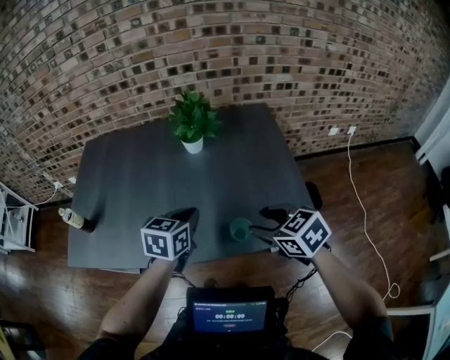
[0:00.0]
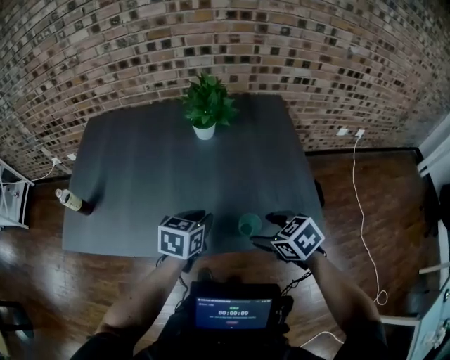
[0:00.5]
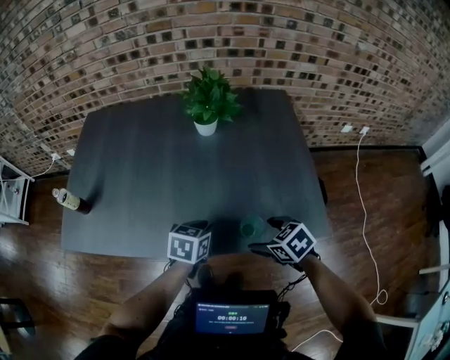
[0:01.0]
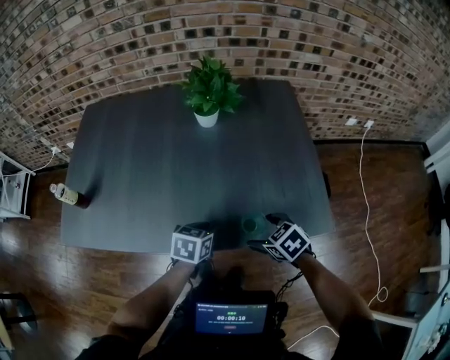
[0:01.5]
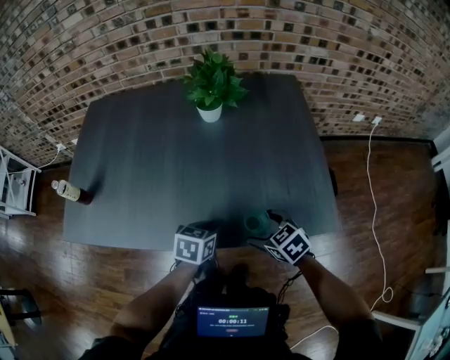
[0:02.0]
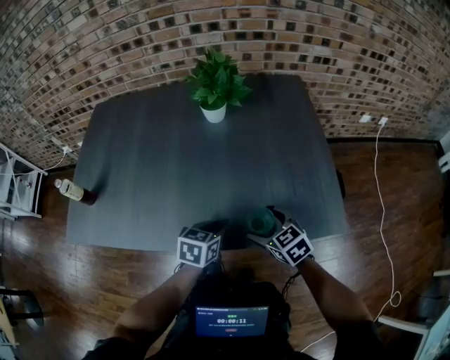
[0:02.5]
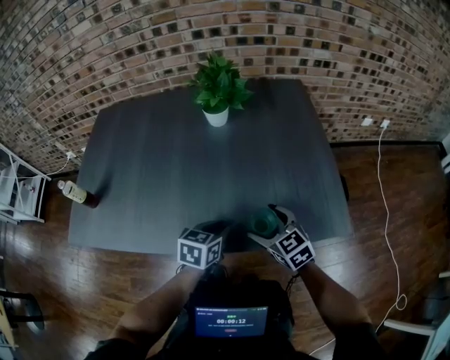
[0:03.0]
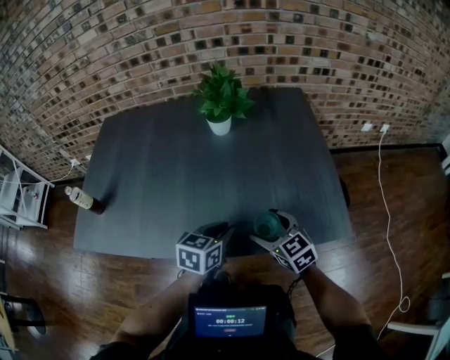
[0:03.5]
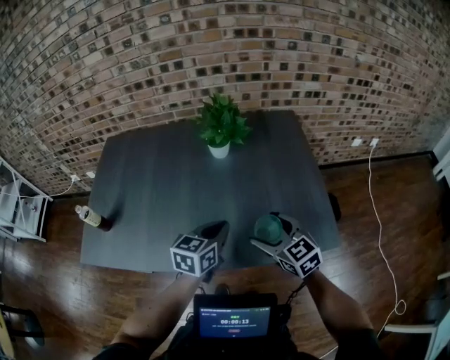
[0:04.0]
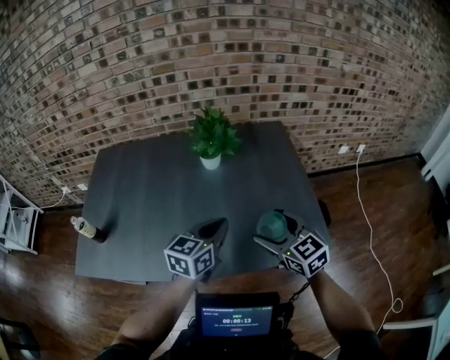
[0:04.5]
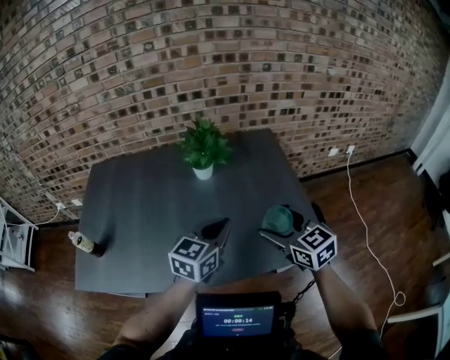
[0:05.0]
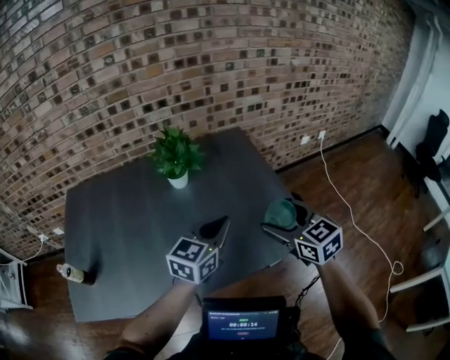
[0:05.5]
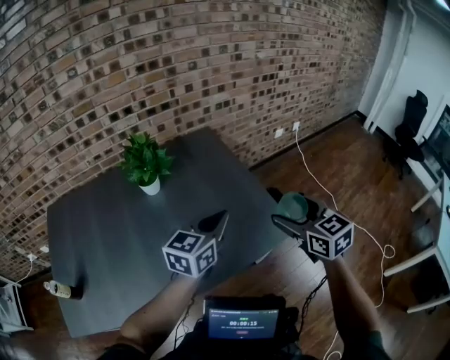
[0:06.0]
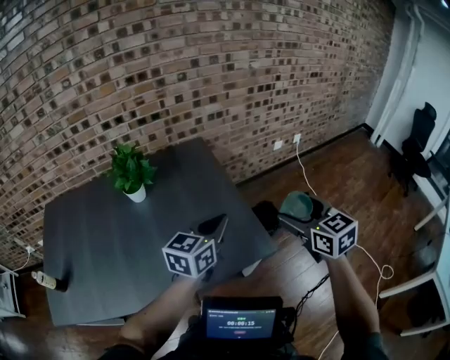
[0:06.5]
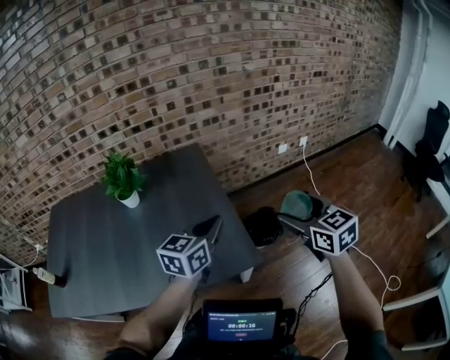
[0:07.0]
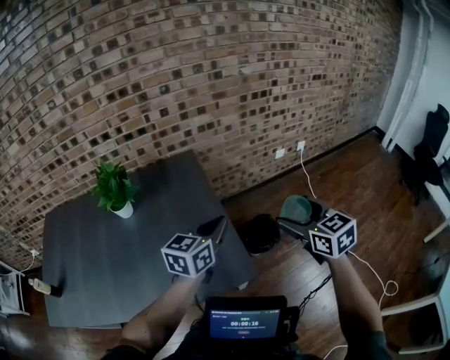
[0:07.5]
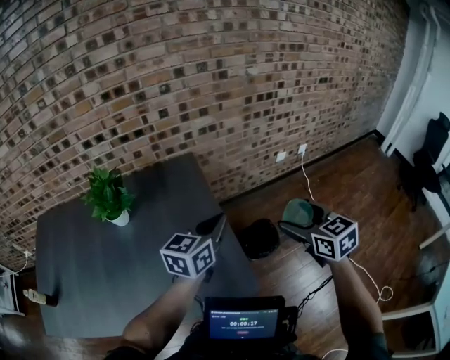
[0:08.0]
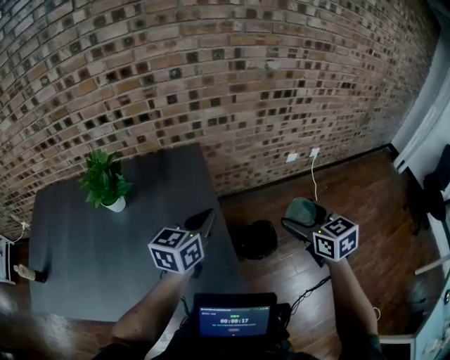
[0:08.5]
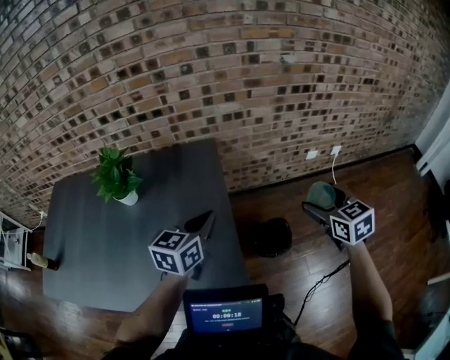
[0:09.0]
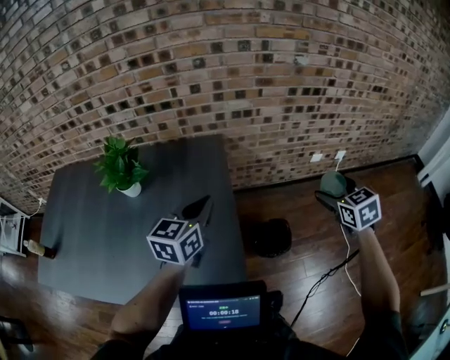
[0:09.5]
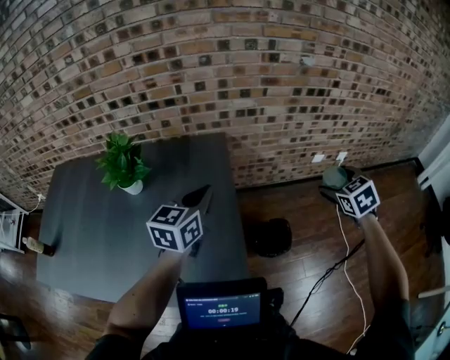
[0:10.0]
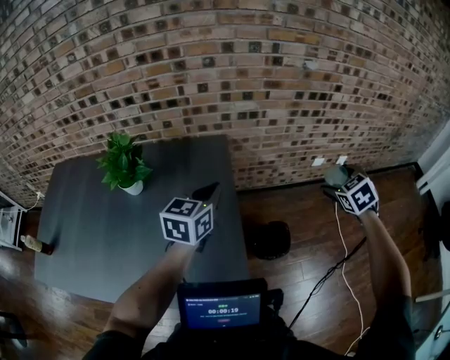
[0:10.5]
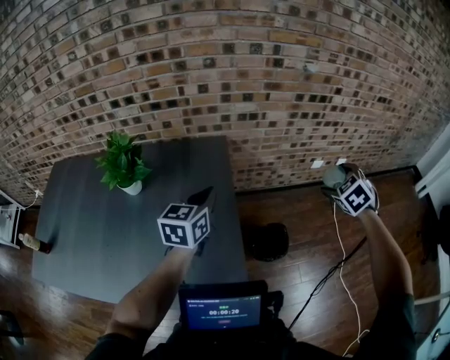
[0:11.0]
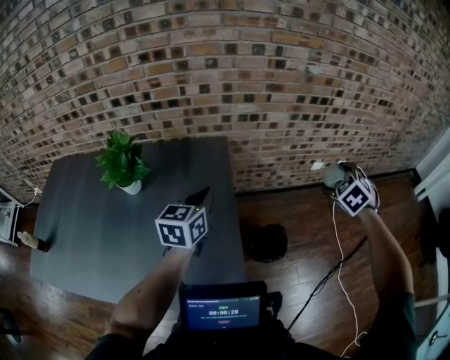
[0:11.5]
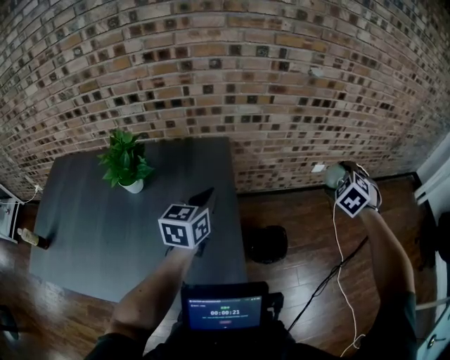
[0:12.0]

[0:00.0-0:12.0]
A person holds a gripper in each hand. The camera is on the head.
0:00.0 to 0:02.0: Both grippers travel together downward, some 20 cm. The right gripper opens.
0:02.0 to 0:04.0: The two grippers go some 15 cm upward. The left gripper rotates approximately 20 degrees; the right gripper swivels some 30 degrees.
0:04.0 to 0:06.0: The left gripper ends up about 20 cm from where it was, and rotates approximately 30 degrees. Meanwhile the right gripper moves roughly 25 cm, and rotates about 30 degrees.
0:06.0 to 0:08.0: The left gripper travels forward and to the right by about 25 cm; the right gripper moves to the right and forward, some 30 cm.
0:08.0 to 0:10.0: The right gripper travels forward and to the right by roughly 25 cm, and changes its angle by approximately 30 degrees. Meanwhile the left gripper shifts some 10 cm forward and to the left, and rotates roughly 20 degrees.
0:10.0 to 0:12.0: The right gripper swivels approximately 30 degrees.

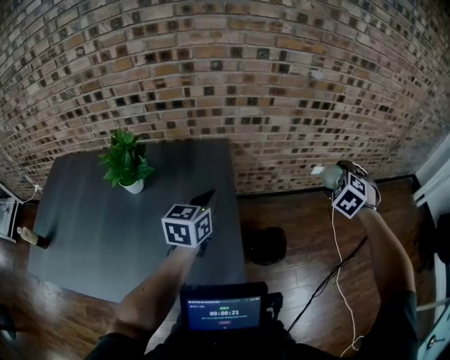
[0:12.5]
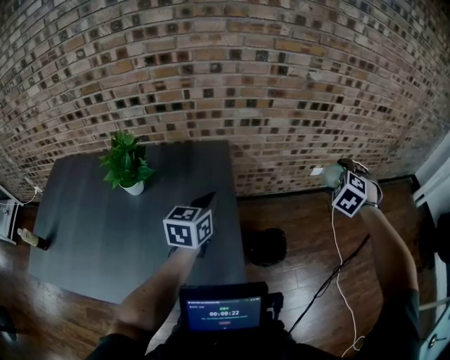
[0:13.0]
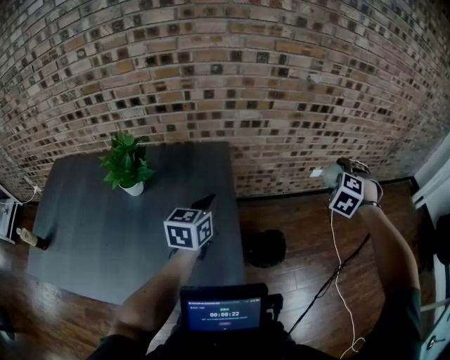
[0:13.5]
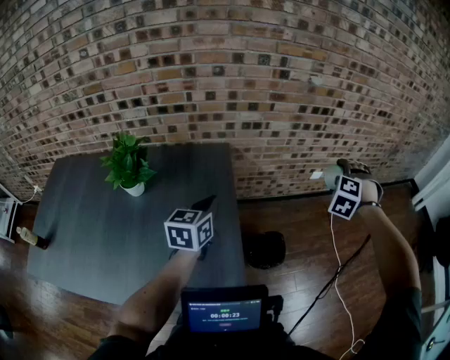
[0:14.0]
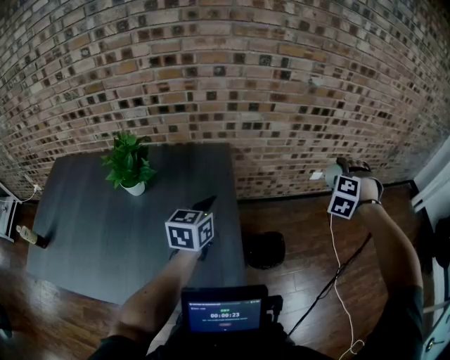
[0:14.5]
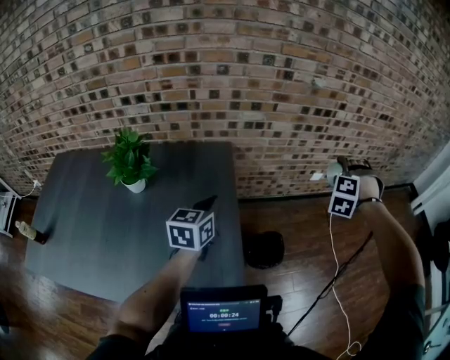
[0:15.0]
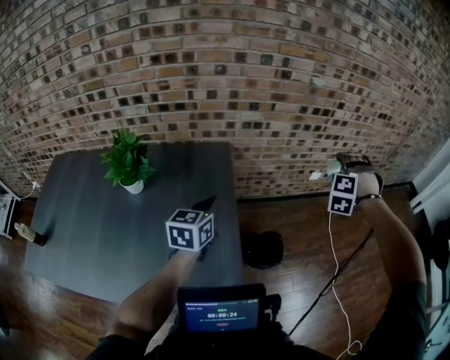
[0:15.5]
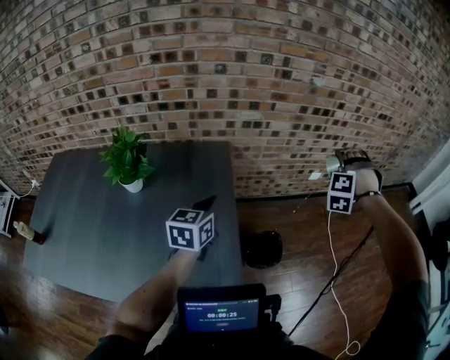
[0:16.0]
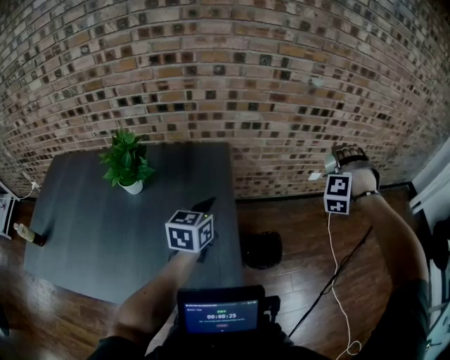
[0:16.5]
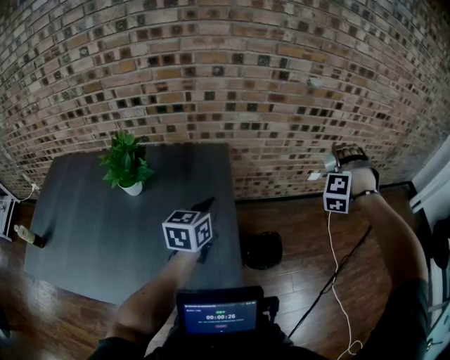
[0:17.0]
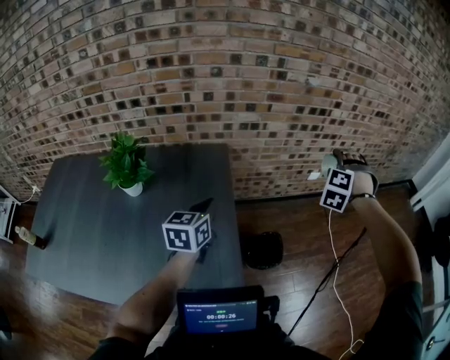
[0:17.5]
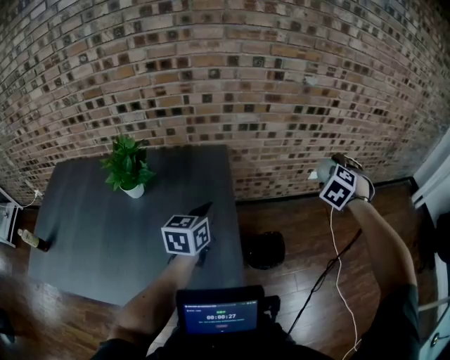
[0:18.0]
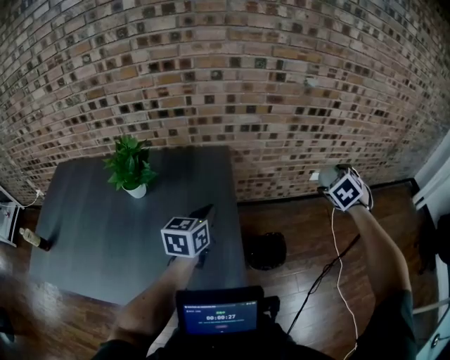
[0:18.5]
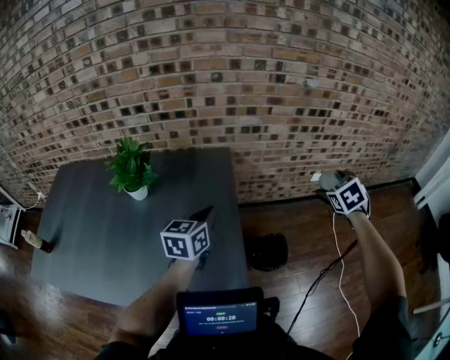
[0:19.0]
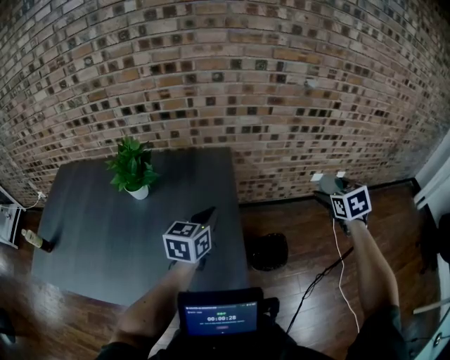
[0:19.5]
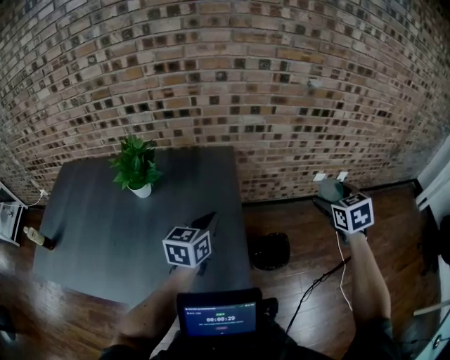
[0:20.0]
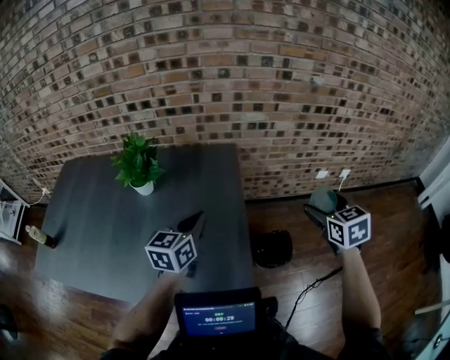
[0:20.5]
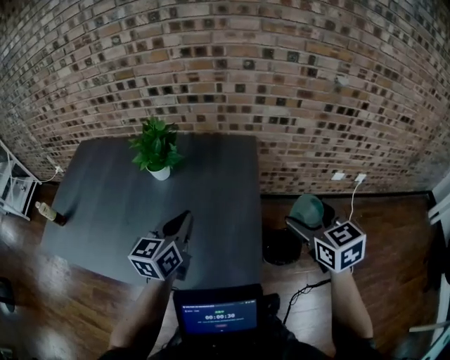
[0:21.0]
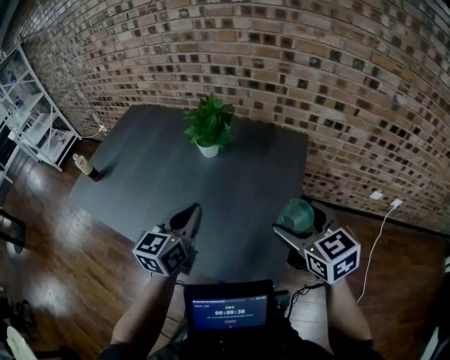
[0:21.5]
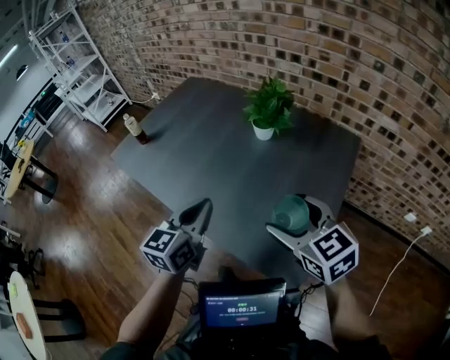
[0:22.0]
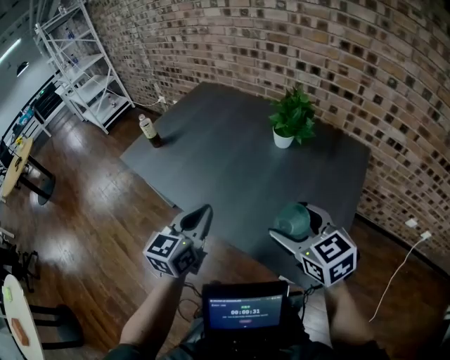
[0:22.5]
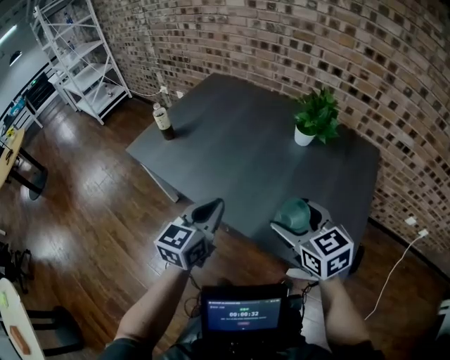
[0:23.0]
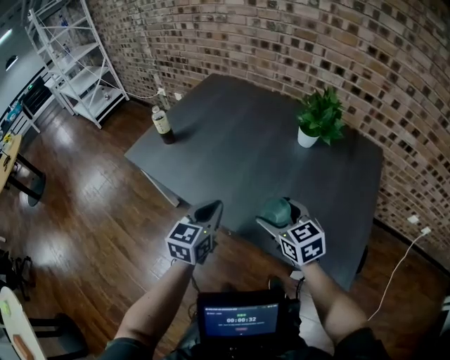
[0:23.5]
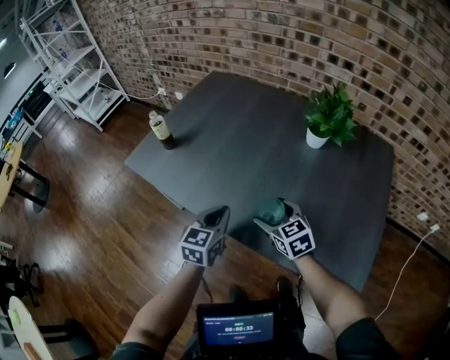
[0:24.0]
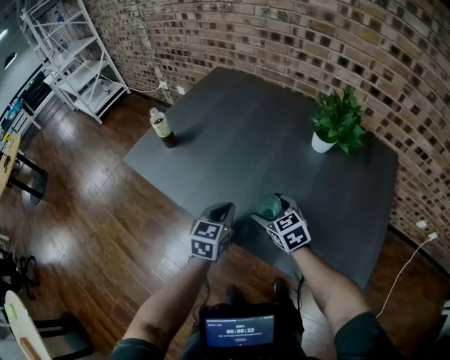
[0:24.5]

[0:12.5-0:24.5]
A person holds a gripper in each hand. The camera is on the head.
0:12.5 to 0:14.5: The right gripper rotates about 20 degrees.
0:14.5 to 0:16.5: The right gripper rotates approximately 20 degrees.
0:16.5 to 0:18.5: The right gripper ends up approximately 5 cm from where it was, and rotates around the line of its fingers by approximately 60 degrees, clockwise from behind.
0:18.5 to 0:20.5: The right gripper moves backward and to the left, approximately 10 cm, and changes its angle by about 40 degrees; the left gripper travels backward by roughly 5 cm.
0:20.5 to 0:22.5: The right gripper moves approximately 50 cm, and swivels roughly 60 degrees; the left gripper shifts by about 40 cm, and changes its angle by about 40 degrees.
0:22.5 to 0:24.5: Both grippers travel together downward, forward and to the left, some 30 cm.

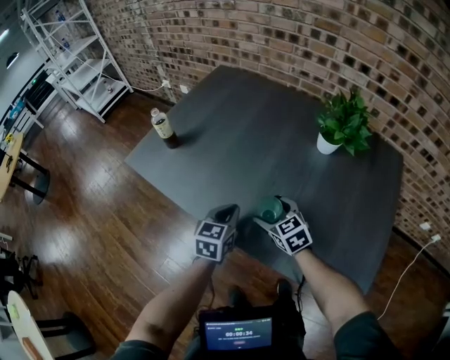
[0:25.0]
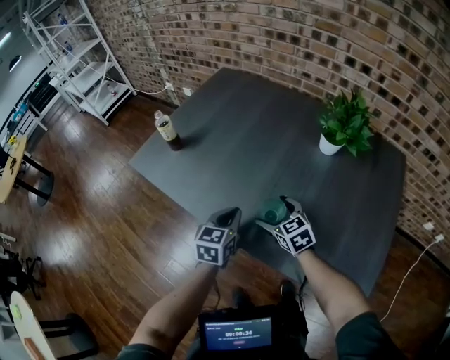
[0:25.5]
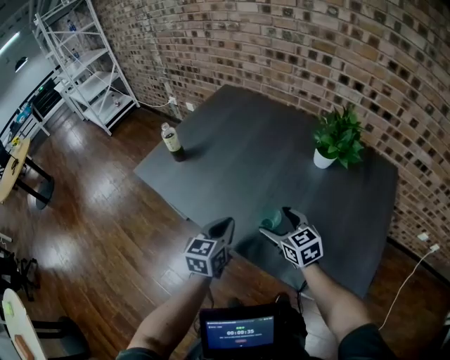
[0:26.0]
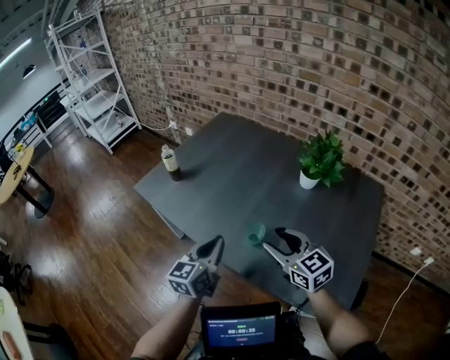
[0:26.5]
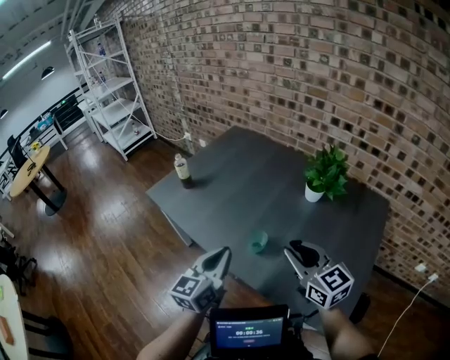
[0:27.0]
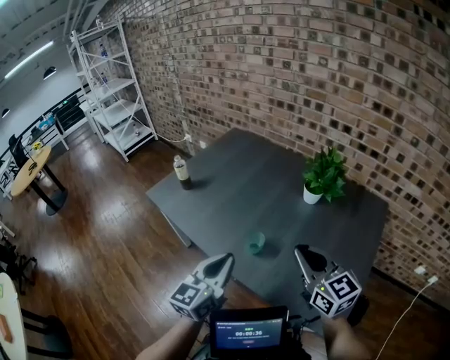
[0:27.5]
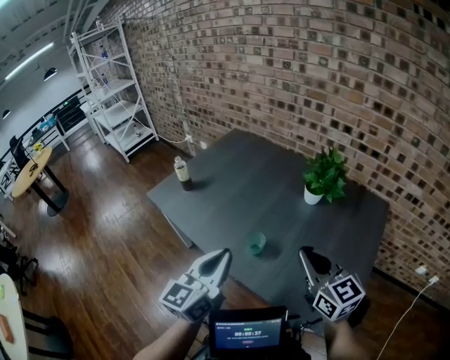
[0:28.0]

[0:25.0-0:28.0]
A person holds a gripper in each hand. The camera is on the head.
0:25.0 to 0:26.5: Both grippers move upward and backward, some 20 cm. The right gripper rotates roughly 20 degrees, and closes up.
0:26.5 to 0:28.0: The right gripper is displaced upward, to the right and backward by about 15 cm, and closes, while the left gripper heads upward and backward, covering some 15 cm.
